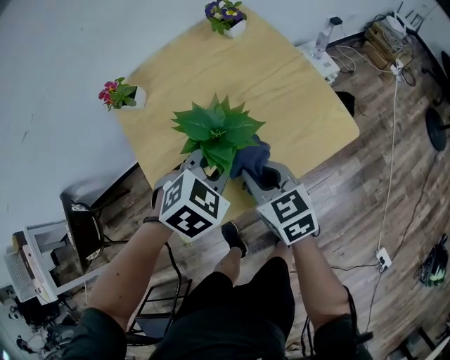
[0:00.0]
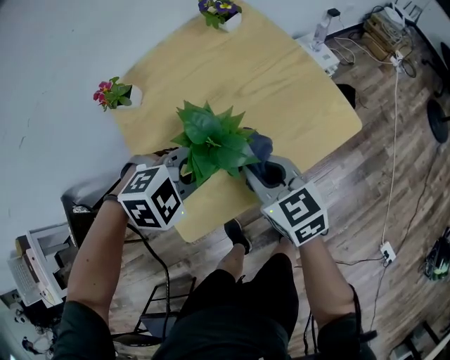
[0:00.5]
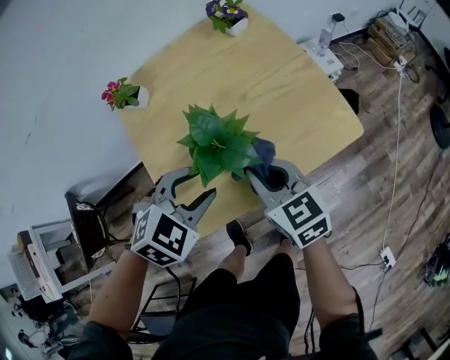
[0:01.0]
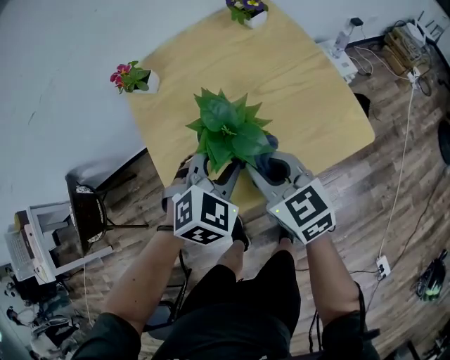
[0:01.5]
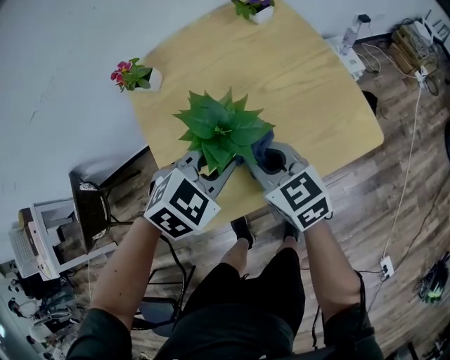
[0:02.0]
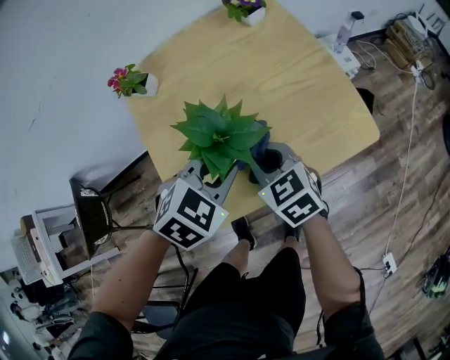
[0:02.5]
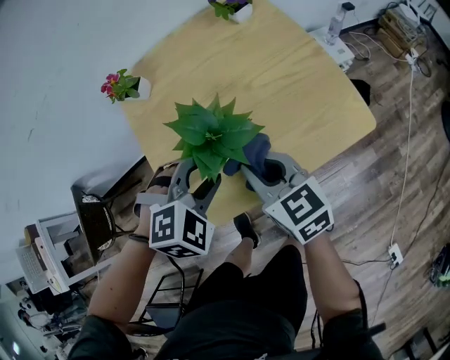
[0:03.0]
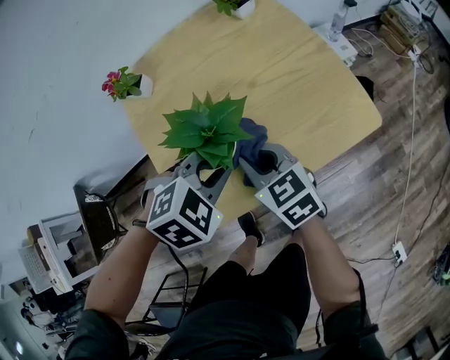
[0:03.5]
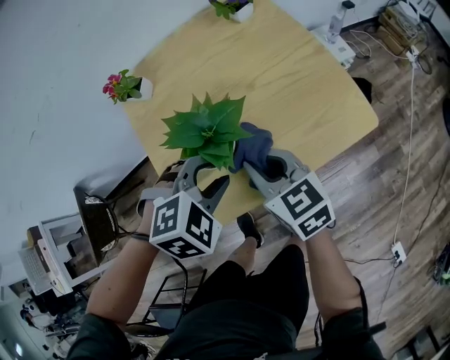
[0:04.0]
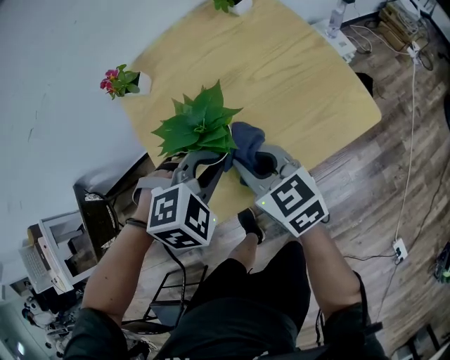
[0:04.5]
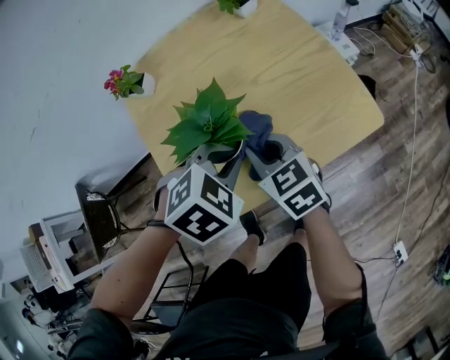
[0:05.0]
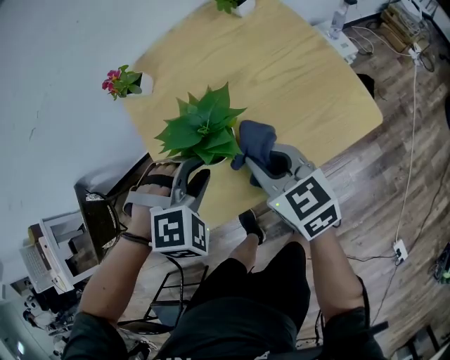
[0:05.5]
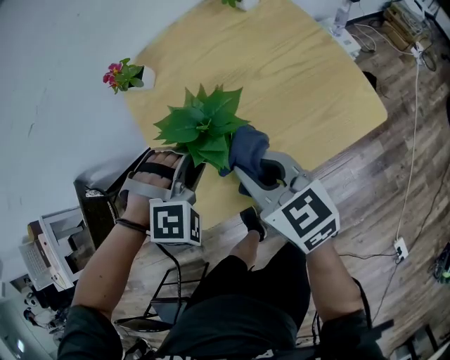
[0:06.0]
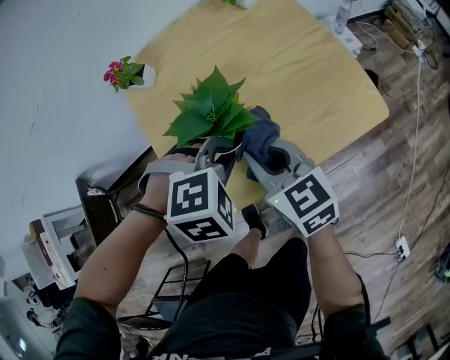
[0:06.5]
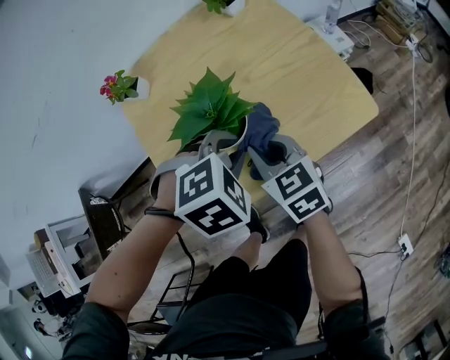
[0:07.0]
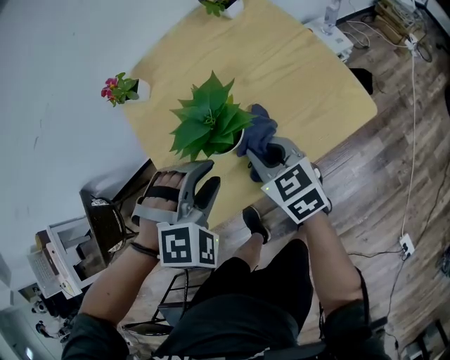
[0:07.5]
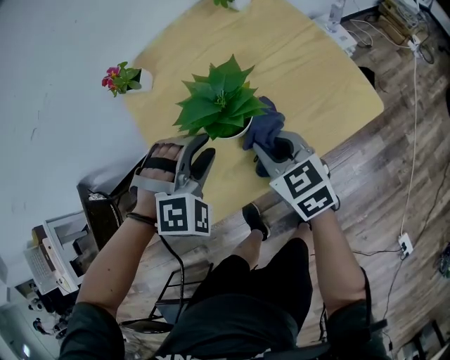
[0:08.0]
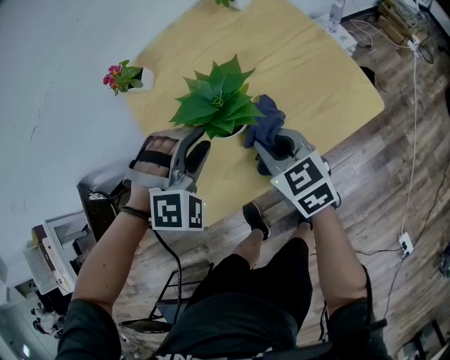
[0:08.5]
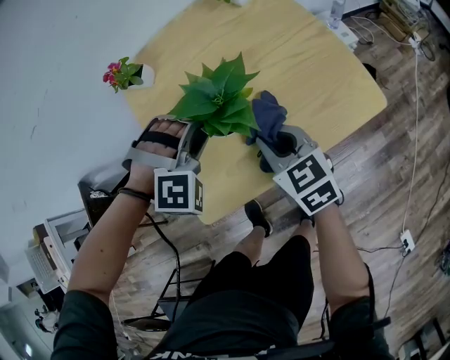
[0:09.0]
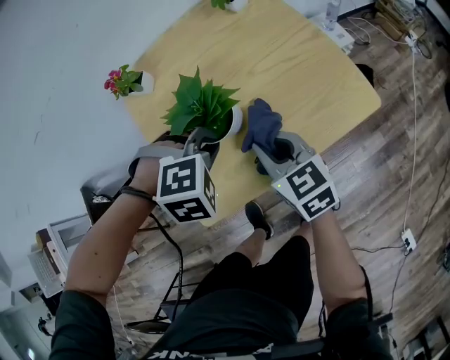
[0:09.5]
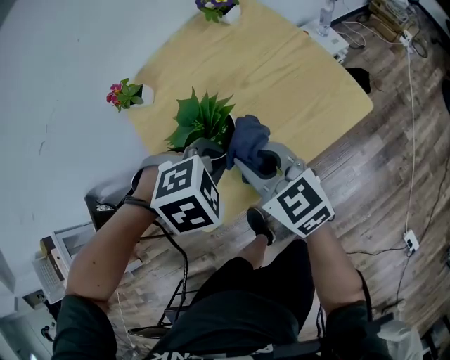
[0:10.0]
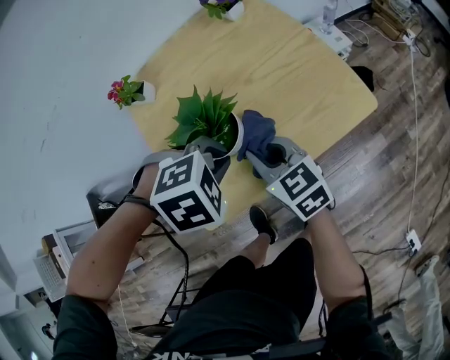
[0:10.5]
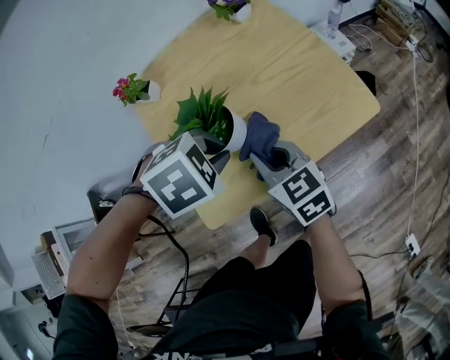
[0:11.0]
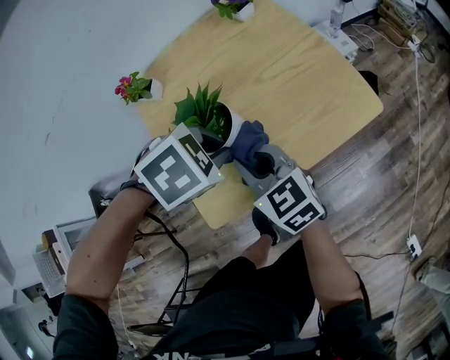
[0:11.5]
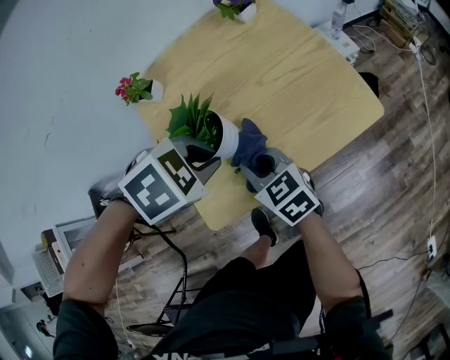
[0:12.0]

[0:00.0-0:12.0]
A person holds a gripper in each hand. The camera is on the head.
0.0 to 2.0 s: The left gripper opens, then closes again.
2.0 to 4.0 s: The left gripper opens.
4.0 to 6.0 s: The left gripper heads to the left, covering about 5 cm, and turns by approximately 30 degrees.
6.0 to 8.0 s: The right gripper travels downward by approximately 5 cm, while the left gripper travels to the right and back again, about 10 cm each way.
8.0 to 10.0 s: The left gripper swivels approximately 30 degrees, and closes up. The right gripper shifts roughly 10 cm upward.
10.0 to 12.0 s: The right gripper travels downward by some 10 cm.

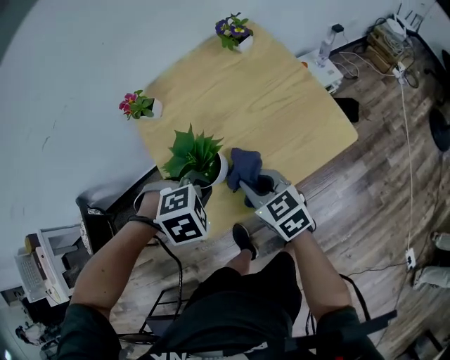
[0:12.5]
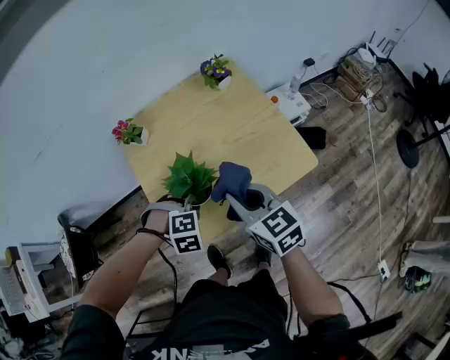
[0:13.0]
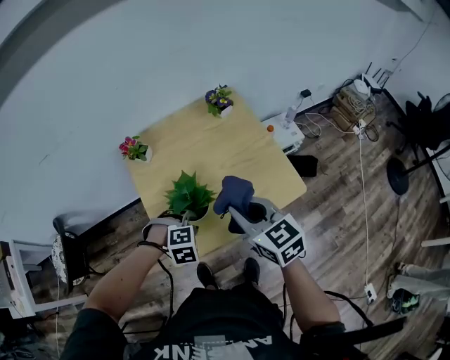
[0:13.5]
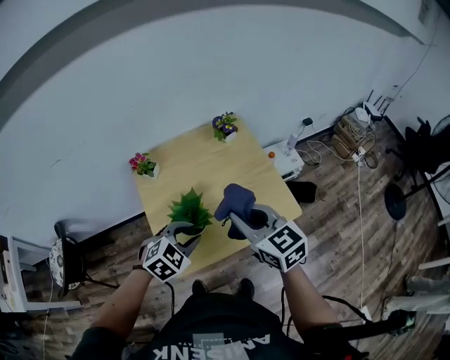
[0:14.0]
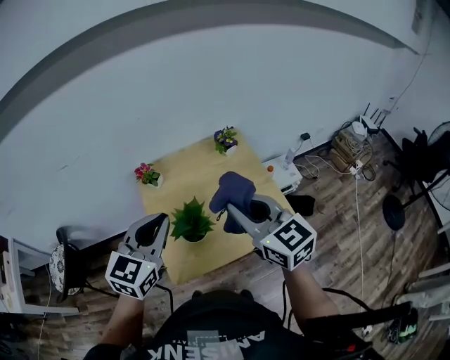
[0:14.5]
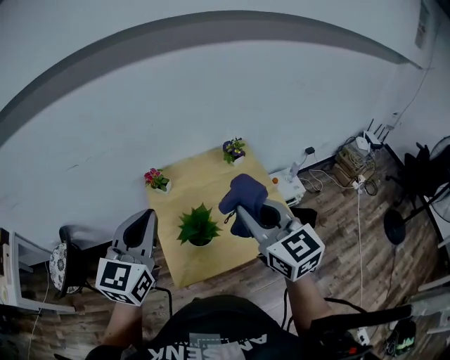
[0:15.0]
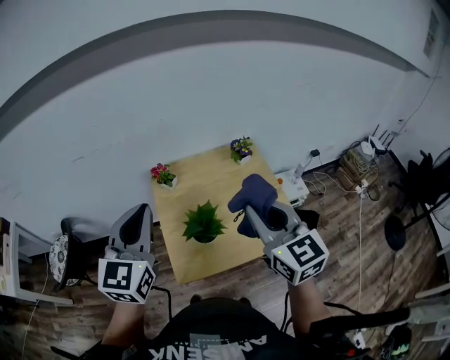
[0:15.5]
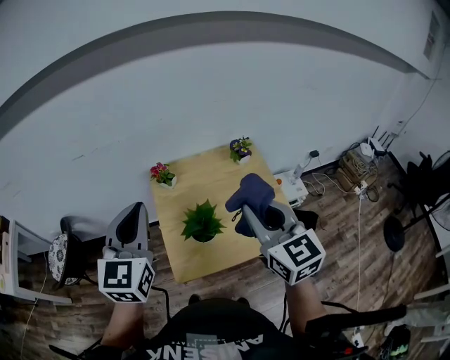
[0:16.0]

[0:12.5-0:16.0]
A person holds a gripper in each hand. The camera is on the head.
12.5 to 14.5 s: The grippers both shift upward by some 30 cm. The right gripper changes its angle by about 20 degrees; the left gripper tilts its fingers about 70 degrees upward, and opens and closes again.
14.5 to 16.0 s: The left gripper heads upward and to the left, covering some 10 cm, and swivels about 30 degrees.

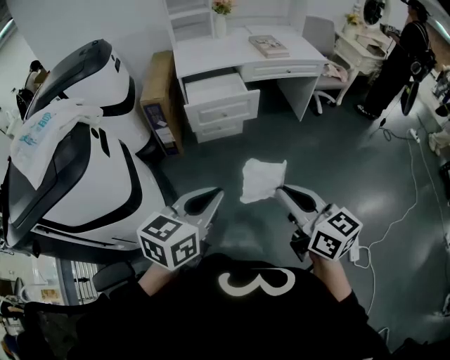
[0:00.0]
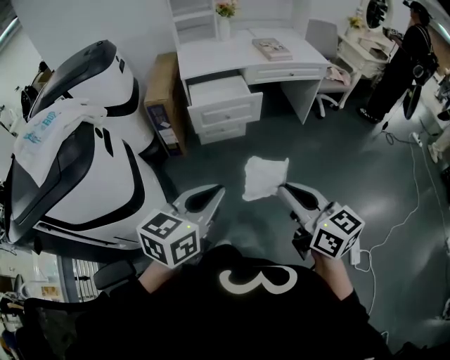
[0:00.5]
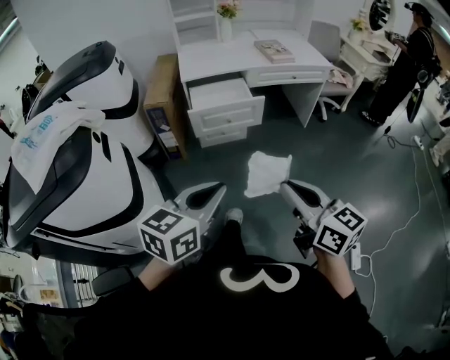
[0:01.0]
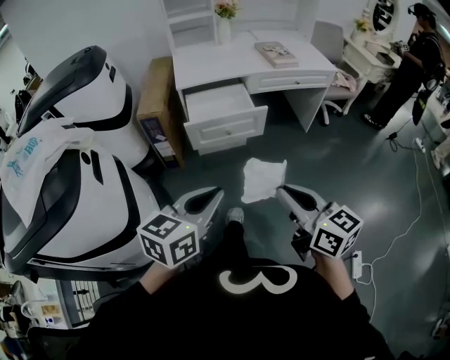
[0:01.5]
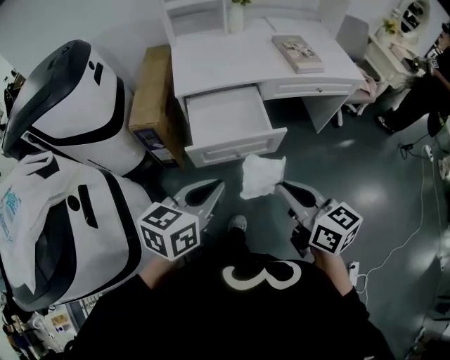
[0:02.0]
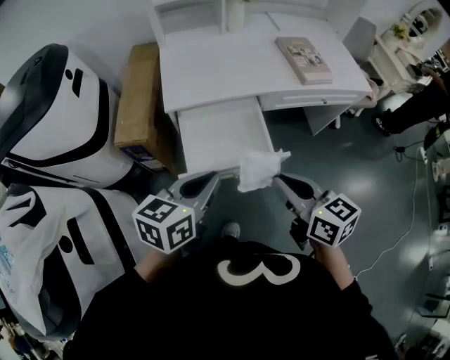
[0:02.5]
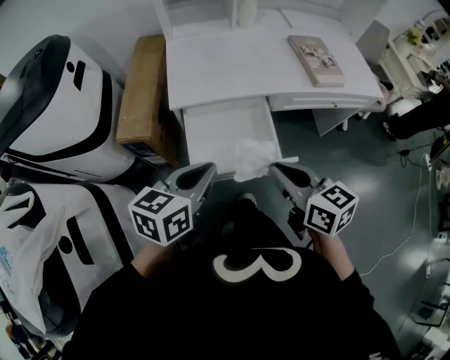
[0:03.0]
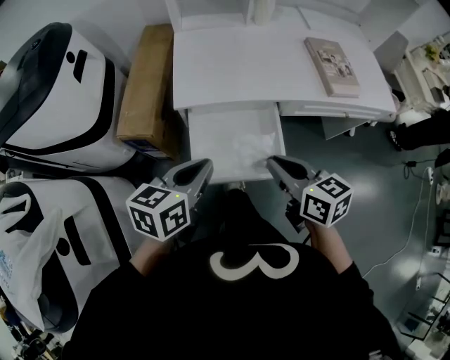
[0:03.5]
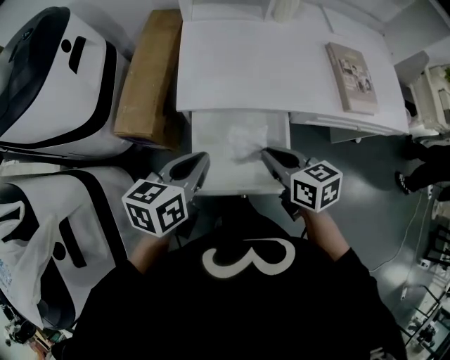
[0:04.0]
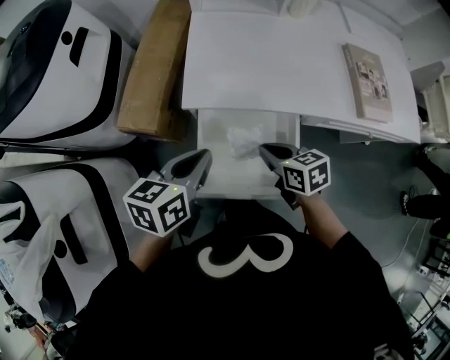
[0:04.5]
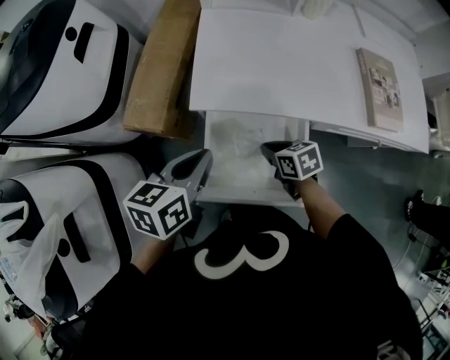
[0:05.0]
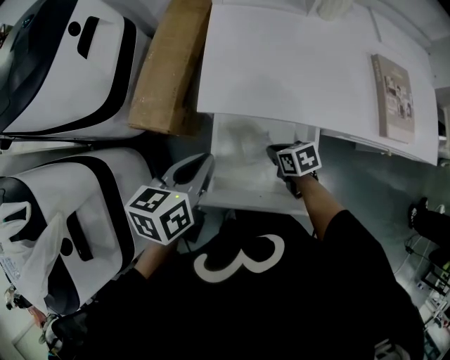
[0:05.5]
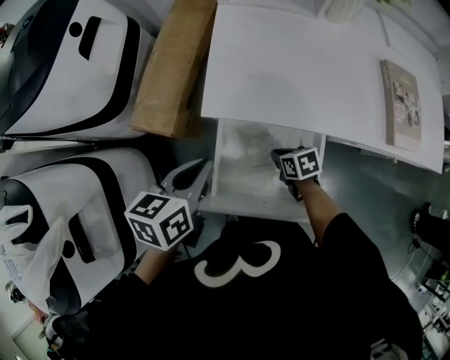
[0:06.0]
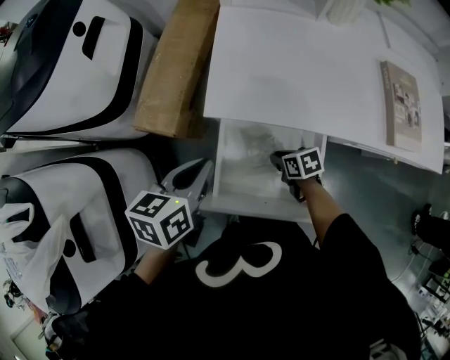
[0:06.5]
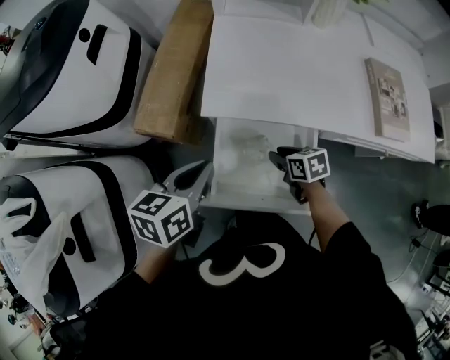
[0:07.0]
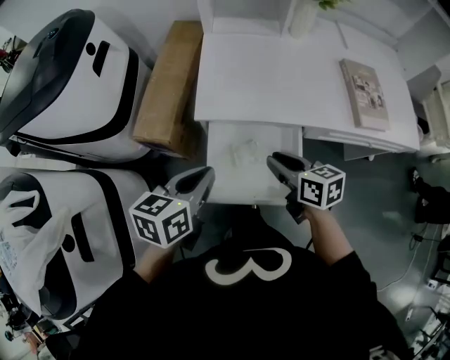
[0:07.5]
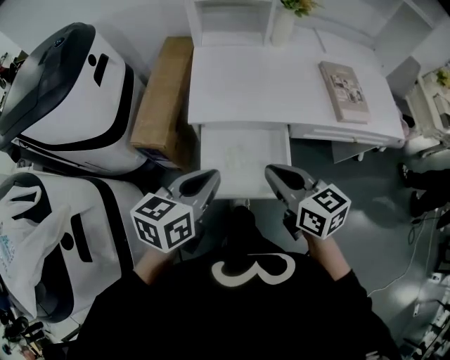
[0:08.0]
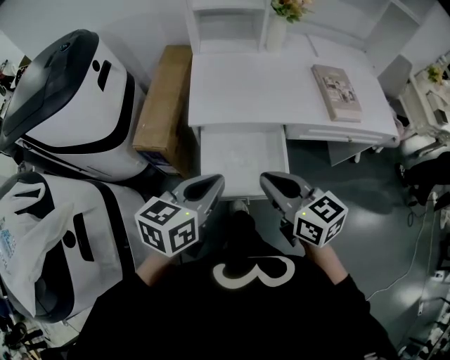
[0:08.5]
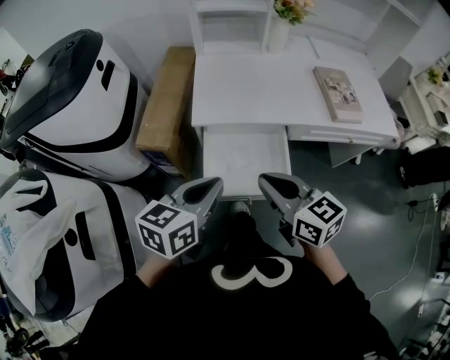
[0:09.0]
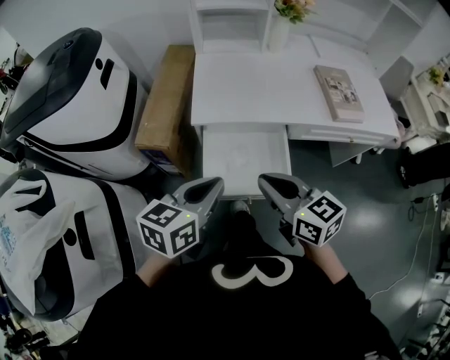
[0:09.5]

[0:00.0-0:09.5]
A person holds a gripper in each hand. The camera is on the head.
0.0 to 2.0 s: Both grippers move forward, roughly 40 cm.
2.0 to 4.0 s: Both grippers travel together forward, about 35 cm. The right gripper swivels approximately 20 degrees.
4.0 to 5.5 s: The left gripper travels forward by some 5 cm, while the right gripper moves downward, some 20 cm, and swivels about 30 degrees.
5.5 to 7.5 s: The right gripper travels upward by approximately 20 cm, and rotates approximately 30 degrees. The left gripper travels backward by approximately 5 cm.
7.5 to 9.5 s: The left gripper moves backward and upward, approximately 10 cm. Meanwhile the right gripper is displaced backward and upward by approximately 20 cm, and rotates approximately 20 degrees.

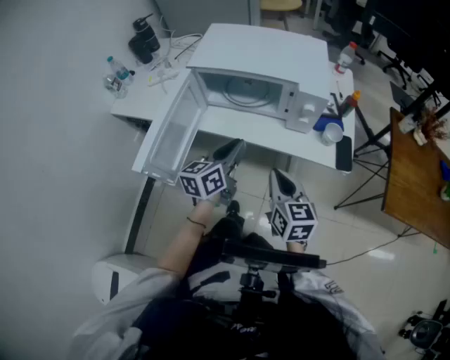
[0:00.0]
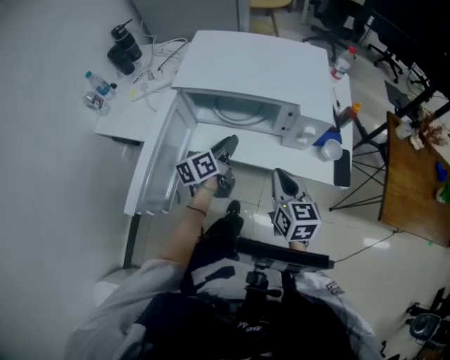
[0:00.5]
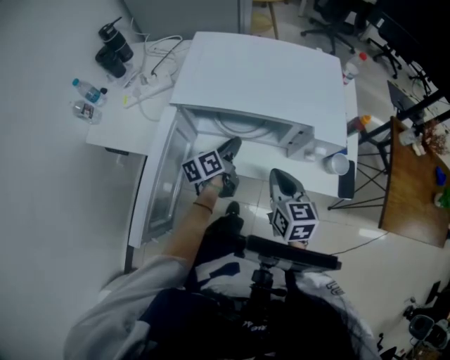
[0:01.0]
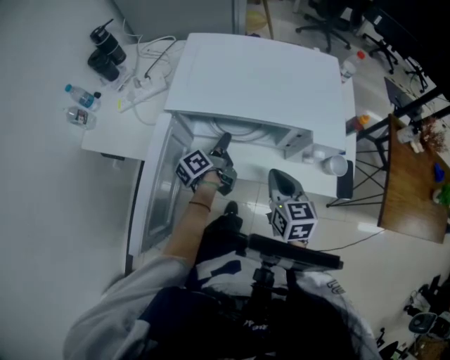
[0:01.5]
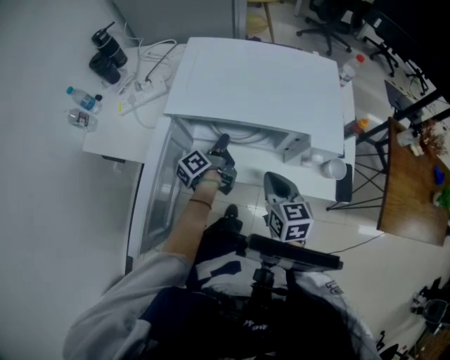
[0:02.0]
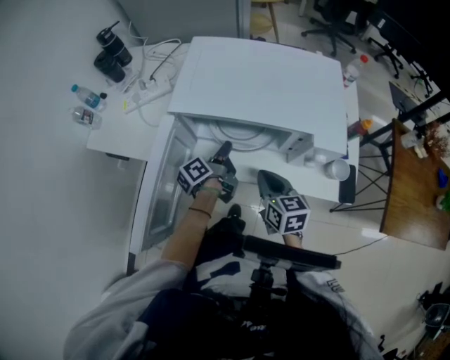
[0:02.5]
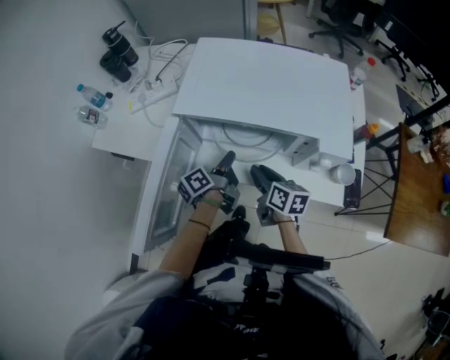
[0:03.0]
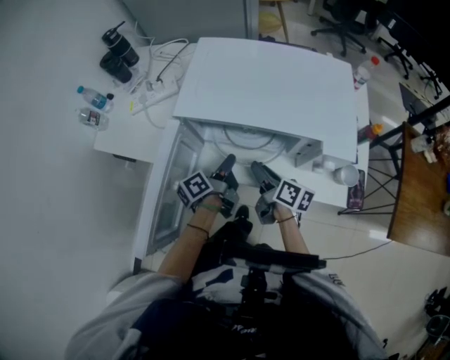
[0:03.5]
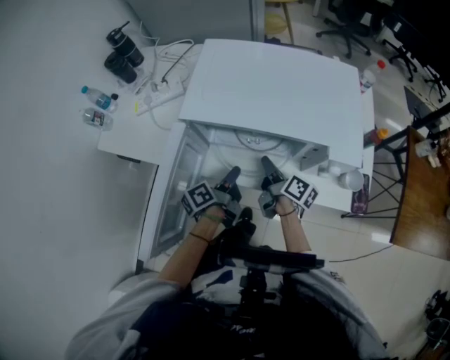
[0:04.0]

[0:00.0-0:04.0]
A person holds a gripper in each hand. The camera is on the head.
0.0 to 2.0 s: The left gripper goes some 25 cm forward and downward, and rotates around the line of its fingers by about 50 degrees, counterclockwise from behind, while the right gripper goes approximately 15 cm forward.
2.0 to 4.0 s: The left gripper travels backward by roughly 10 cm. Meanwhile the right gripper goes approximately 10 cm forward and downward, twists approximately 60 degrees clockwise, seen from behind, and opens and closes again.
